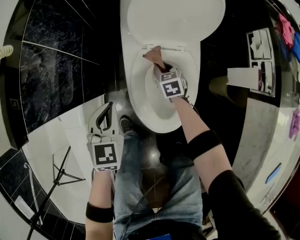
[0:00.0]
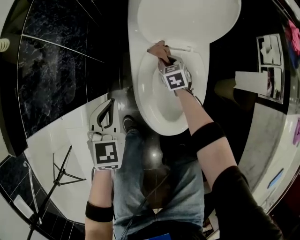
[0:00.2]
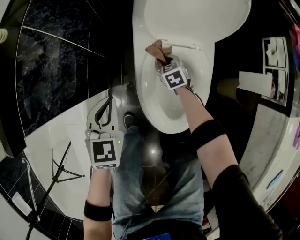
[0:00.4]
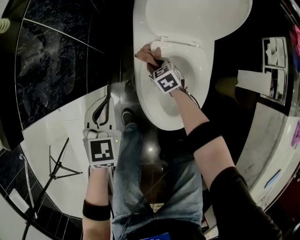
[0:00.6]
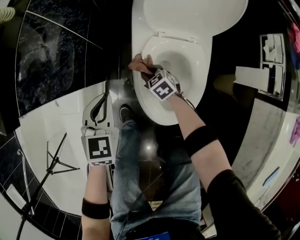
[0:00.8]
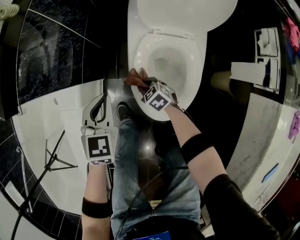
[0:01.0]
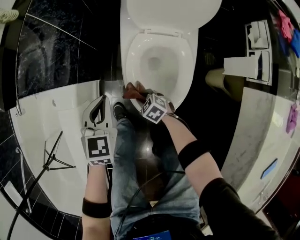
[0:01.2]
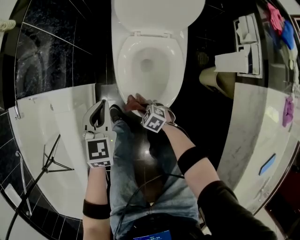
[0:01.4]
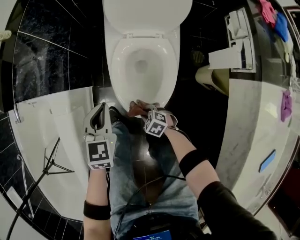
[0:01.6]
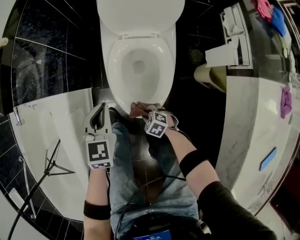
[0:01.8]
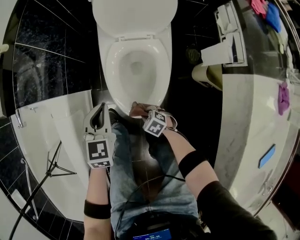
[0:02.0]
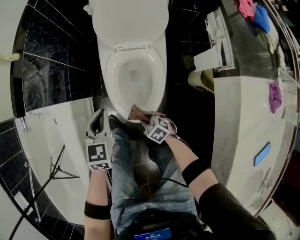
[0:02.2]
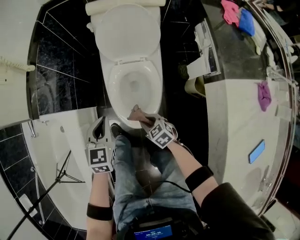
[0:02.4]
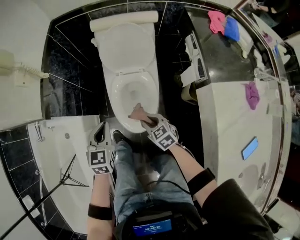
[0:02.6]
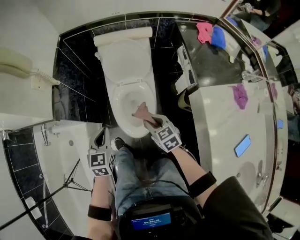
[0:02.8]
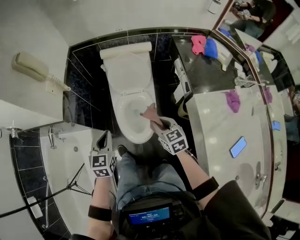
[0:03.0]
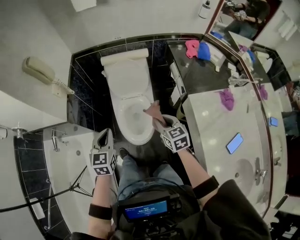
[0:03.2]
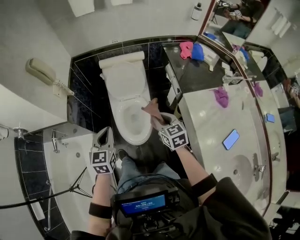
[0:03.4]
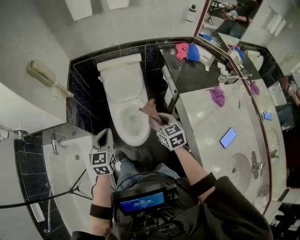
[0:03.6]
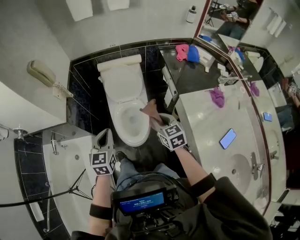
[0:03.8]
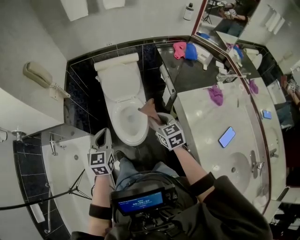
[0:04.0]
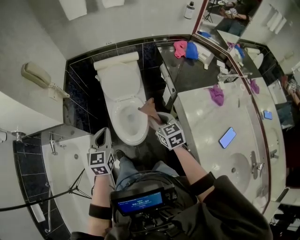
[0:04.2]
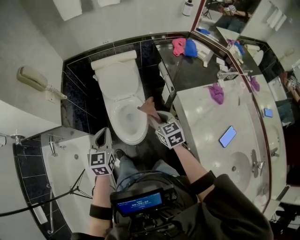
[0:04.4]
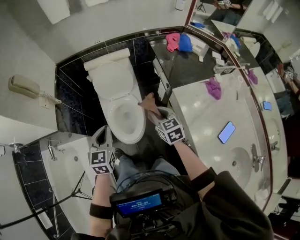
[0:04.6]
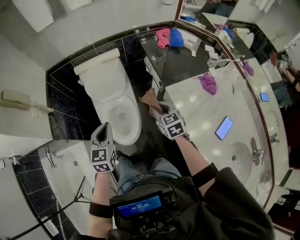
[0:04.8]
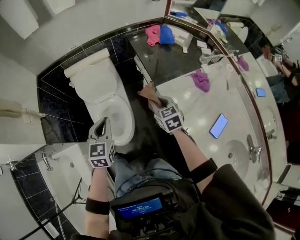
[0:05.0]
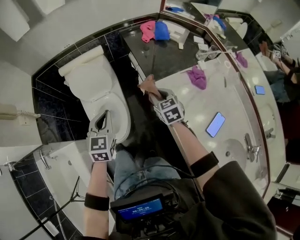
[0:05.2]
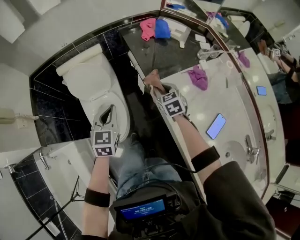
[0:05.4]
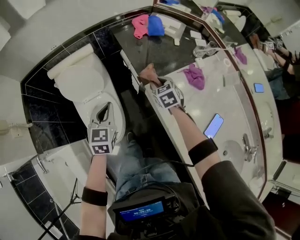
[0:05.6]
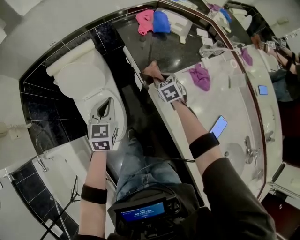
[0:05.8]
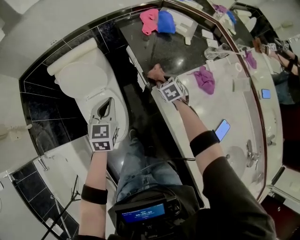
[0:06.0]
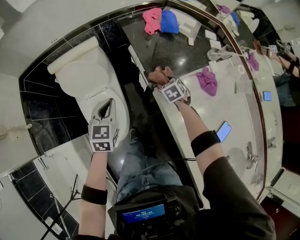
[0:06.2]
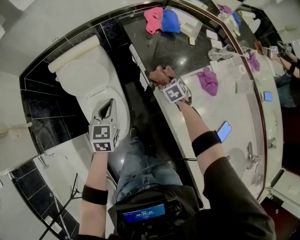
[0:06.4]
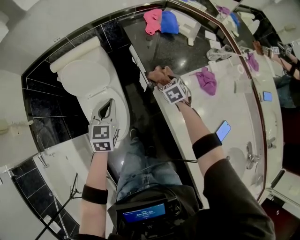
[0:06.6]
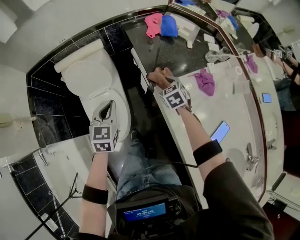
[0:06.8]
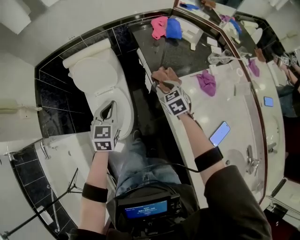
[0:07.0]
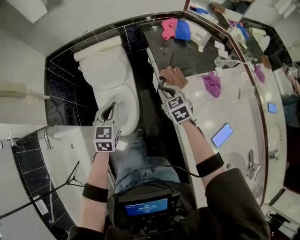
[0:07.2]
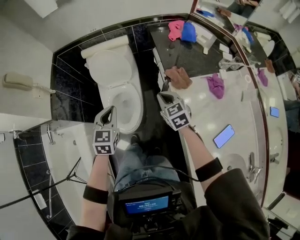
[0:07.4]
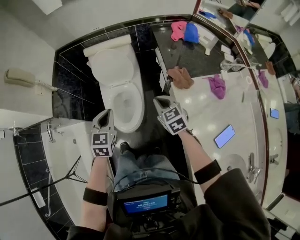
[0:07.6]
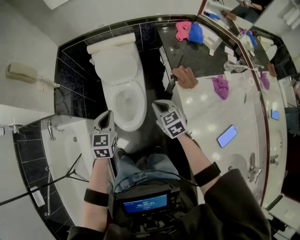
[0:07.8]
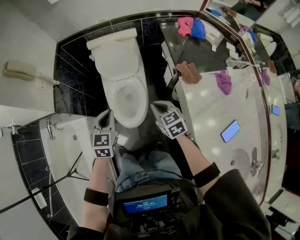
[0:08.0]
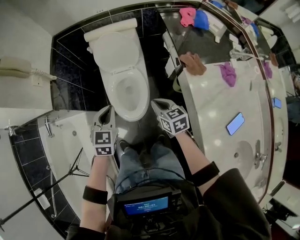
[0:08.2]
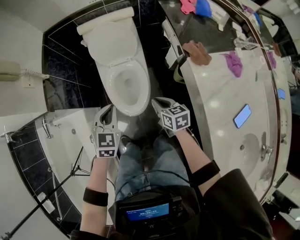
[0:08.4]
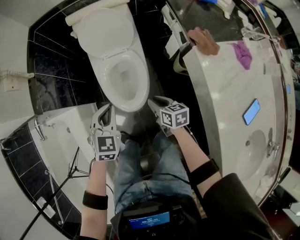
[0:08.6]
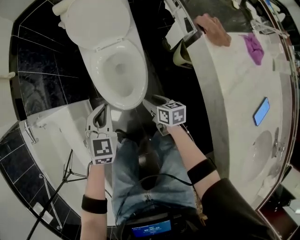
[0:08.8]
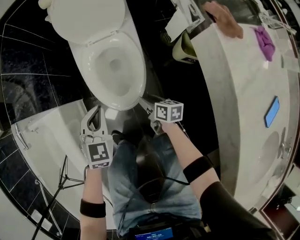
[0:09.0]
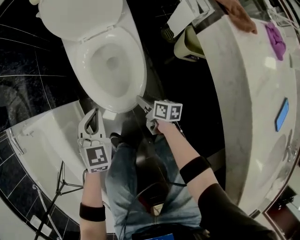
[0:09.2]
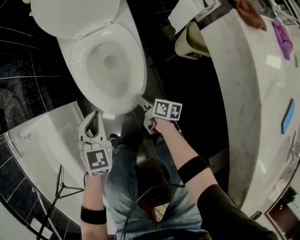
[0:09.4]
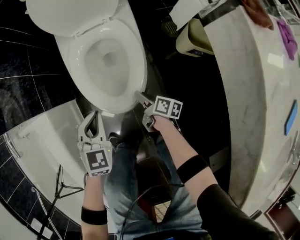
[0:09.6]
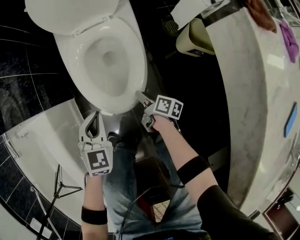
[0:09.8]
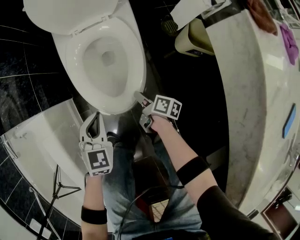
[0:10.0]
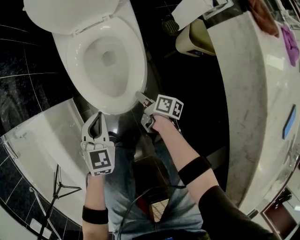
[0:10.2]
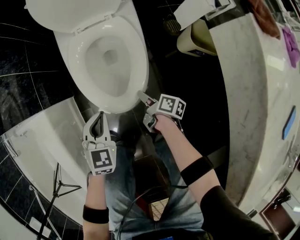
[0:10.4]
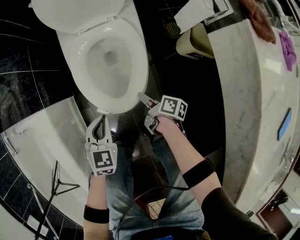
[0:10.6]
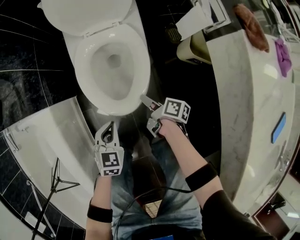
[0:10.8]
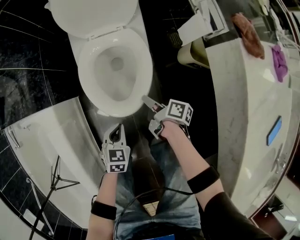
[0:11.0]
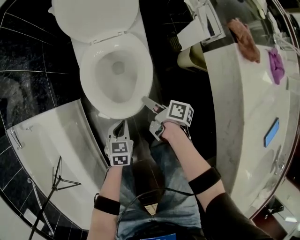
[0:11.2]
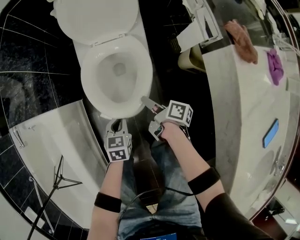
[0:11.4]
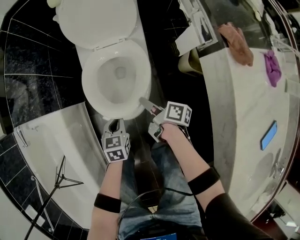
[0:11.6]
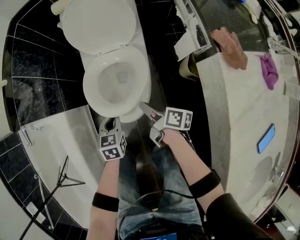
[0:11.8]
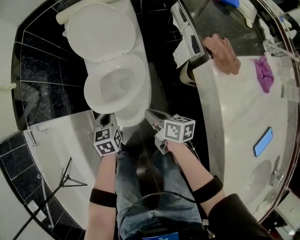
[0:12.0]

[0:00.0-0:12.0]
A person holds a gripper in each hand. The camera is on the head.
0:00.0 to 0:01.6: The right gripper changes place by some 35 cm, and changes its angle by some 50 degrees; the left gripper ends up approximately 10 cm from where it was.
0:01.6 to 0:03.0: The left gripper travels upward by some 30 cm. Meanwhile the right gripper moves upward, approximately 50 cm, and tilts its fingers roughly 30 degrees upward.
0:03.0 to 0:04.4: Both grippers travel together upward and to the right, roughly 10 cm.
0:04.4 to 0:06.0: The left gripper shifts roughly 30 cm forward and to the right, and changes its angle by approximately 20 degrees. The right gripper travels to the right, forward and downward by about 40 cm, and rotates some 30 degrees.
0:06.0 to 0:07.6: The right gripper shifts approximately 30 cm backward, to the left and upward, turns by roughly 30 degrees, and closes up. The left gripper is displaced backward and to the left by some 20 cm.
0:07.6 to 0:09.0: Both grippers move downward, approximately 40 cm. The right gripper rotates around the line of its fingers by approximately 60 degrees, clockwise from behind, and opens.
0:09.0 to 0:10.4: The grippers both shift downward by roughly 15 cm. The right gripper turns by about 30 degrees, and closes up.
0:10.4 to 0:12.0: The right gripper moves upward, about 30 cm, swivels approximately 30 degrees, and closes up, while the left gripper shifts some 10 cm upward and forward, and rotates approximately 30 degrees.

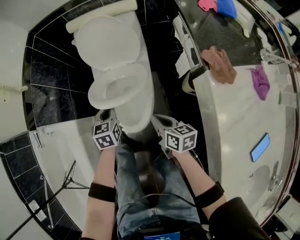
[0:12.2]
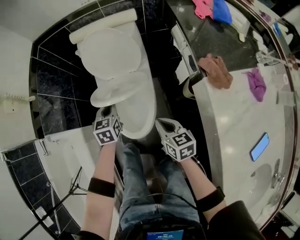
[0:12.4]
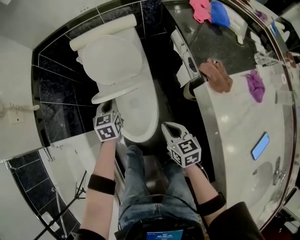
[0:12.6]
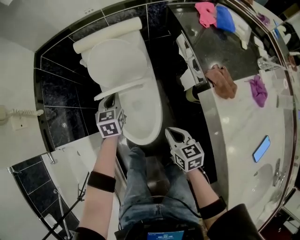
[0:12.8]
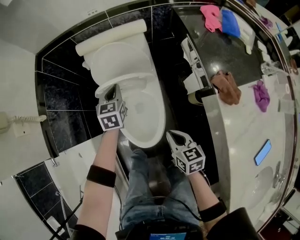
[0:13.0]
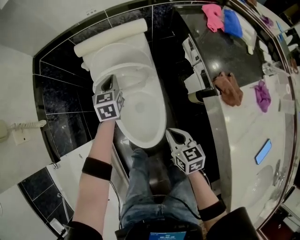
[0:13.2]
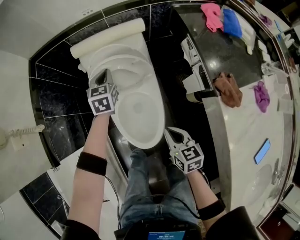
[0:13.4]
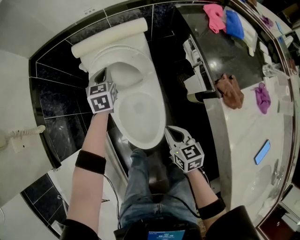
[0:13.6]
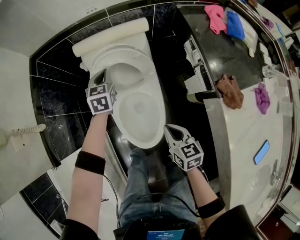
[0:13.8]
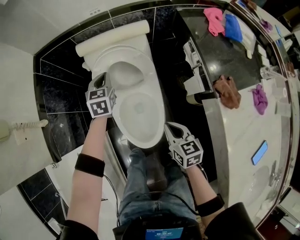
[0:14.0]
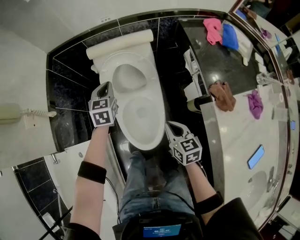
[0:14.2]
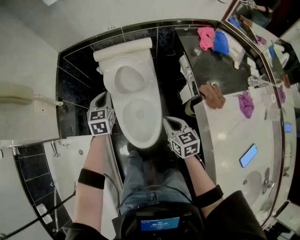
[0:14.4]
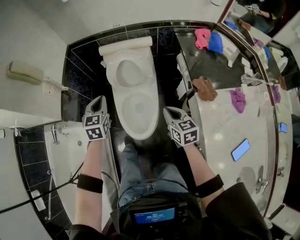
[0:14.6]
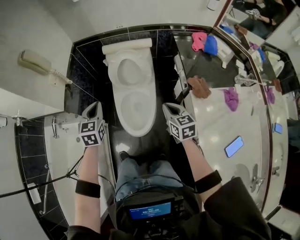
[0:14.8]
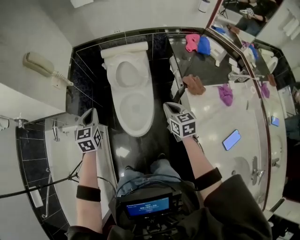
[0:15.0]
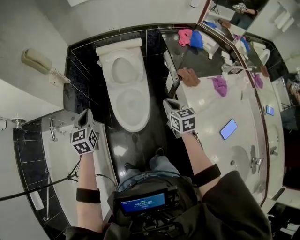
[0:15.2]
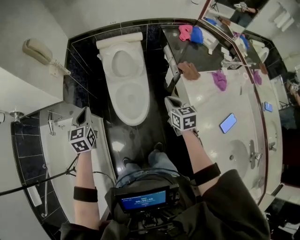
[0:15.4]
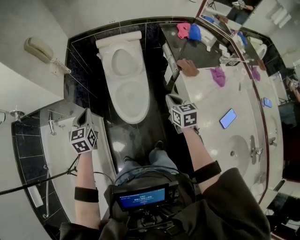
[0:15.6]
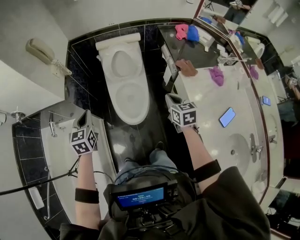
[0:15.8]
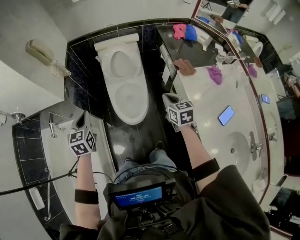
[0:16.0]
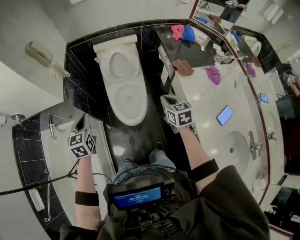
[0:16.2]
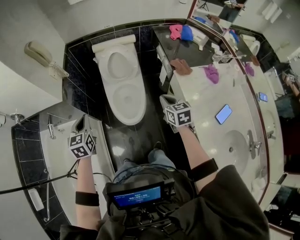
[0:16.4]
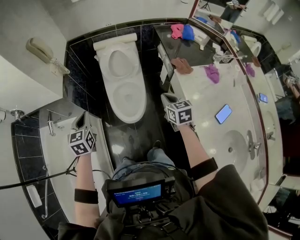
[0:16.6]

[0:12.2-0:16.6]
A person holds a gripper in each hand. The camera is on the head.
0:12.2 to 0:13.6: The right gripper heads forward and upward, covering roughly 10 cm, and changes its angle by roughly 20 degrees; the left gripper travels forward by some 30 cm.
0:13.6 to 0:15.2: The left gripper travels backward, upward and to the left by some 50 cm; the right gripper shifts some 25 cm upward and backward.
0:15.2 to 0:16.6: The two grippers go approximately 10 cm backward.

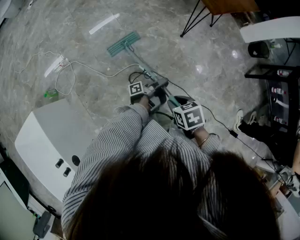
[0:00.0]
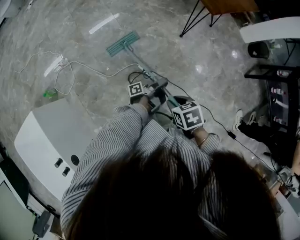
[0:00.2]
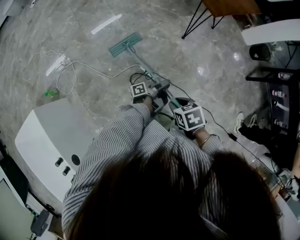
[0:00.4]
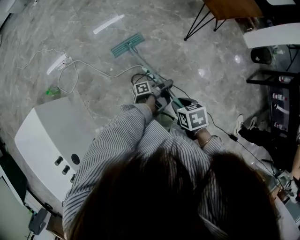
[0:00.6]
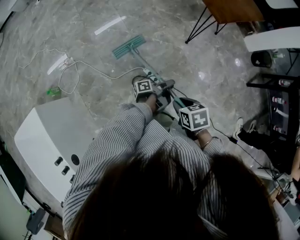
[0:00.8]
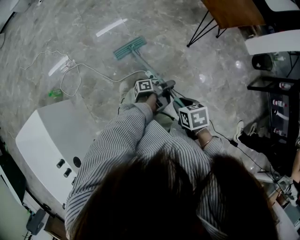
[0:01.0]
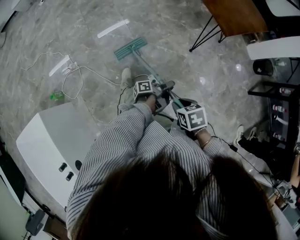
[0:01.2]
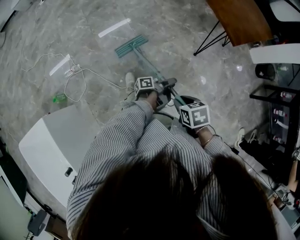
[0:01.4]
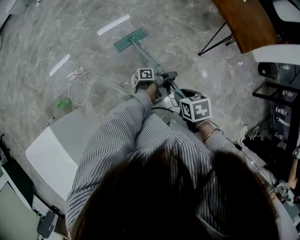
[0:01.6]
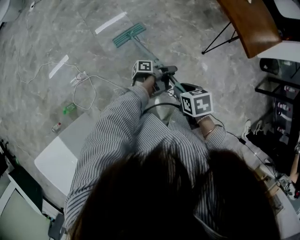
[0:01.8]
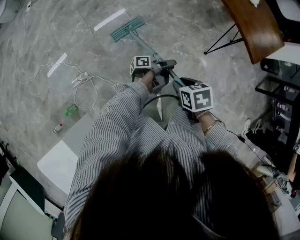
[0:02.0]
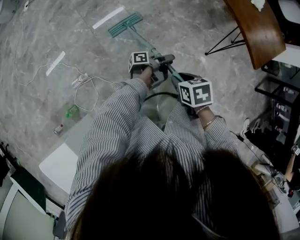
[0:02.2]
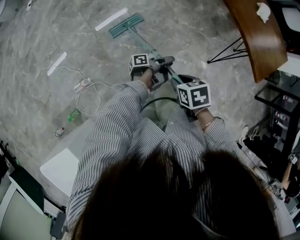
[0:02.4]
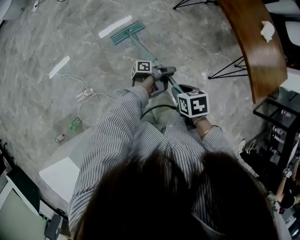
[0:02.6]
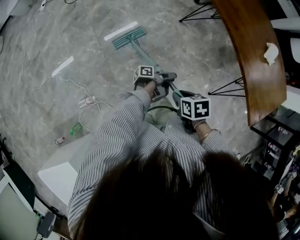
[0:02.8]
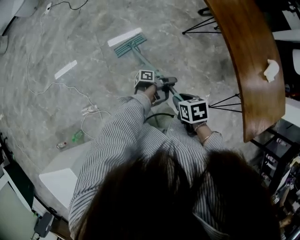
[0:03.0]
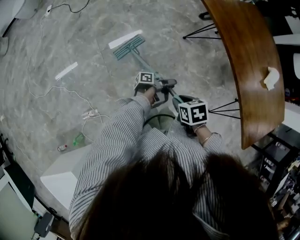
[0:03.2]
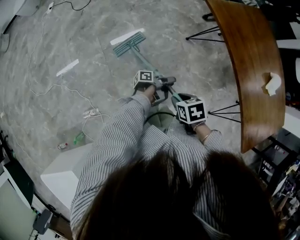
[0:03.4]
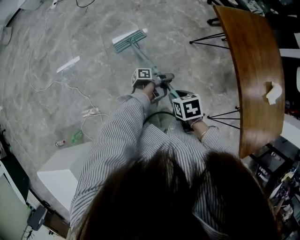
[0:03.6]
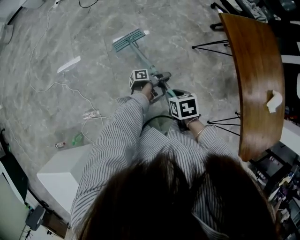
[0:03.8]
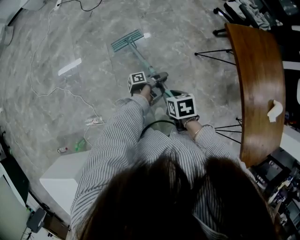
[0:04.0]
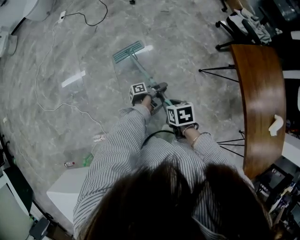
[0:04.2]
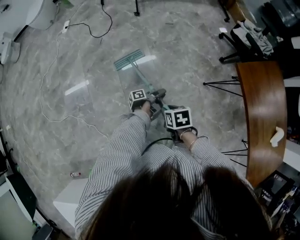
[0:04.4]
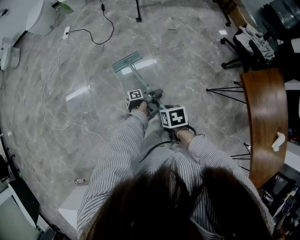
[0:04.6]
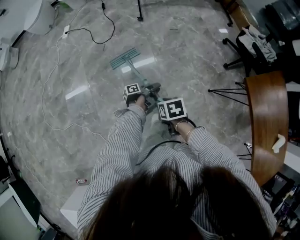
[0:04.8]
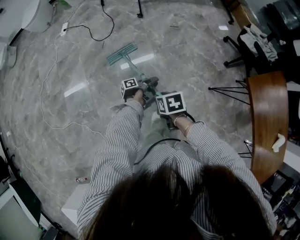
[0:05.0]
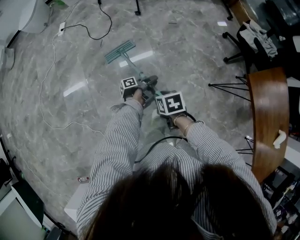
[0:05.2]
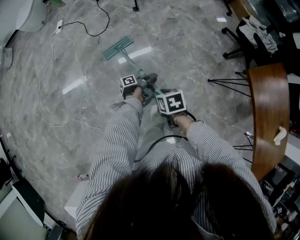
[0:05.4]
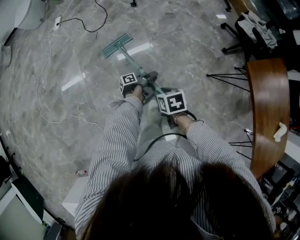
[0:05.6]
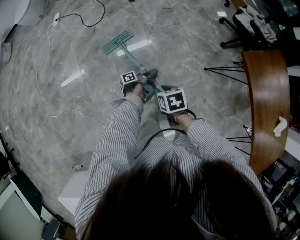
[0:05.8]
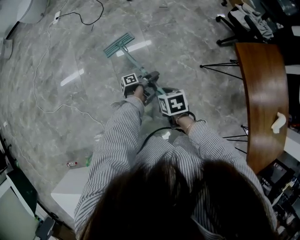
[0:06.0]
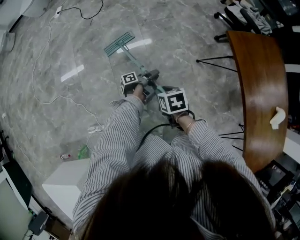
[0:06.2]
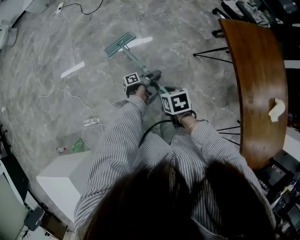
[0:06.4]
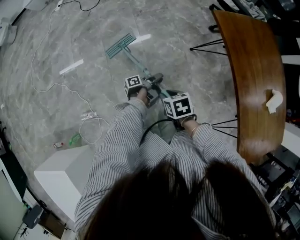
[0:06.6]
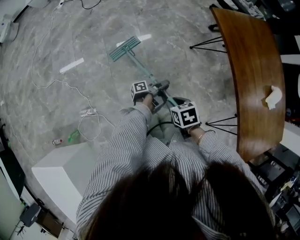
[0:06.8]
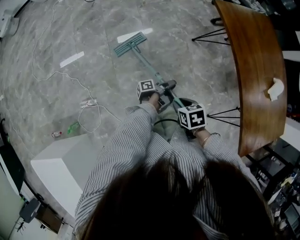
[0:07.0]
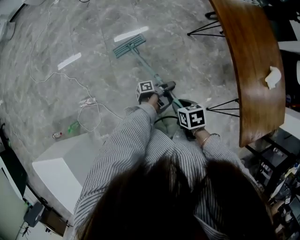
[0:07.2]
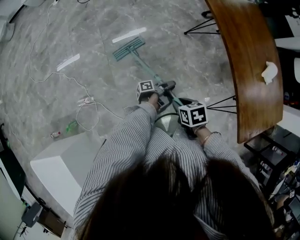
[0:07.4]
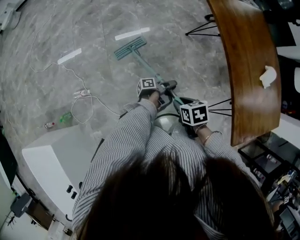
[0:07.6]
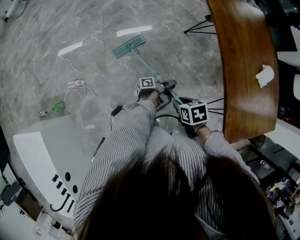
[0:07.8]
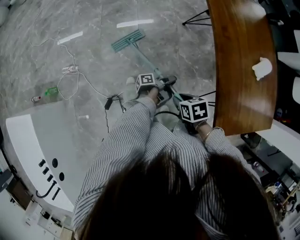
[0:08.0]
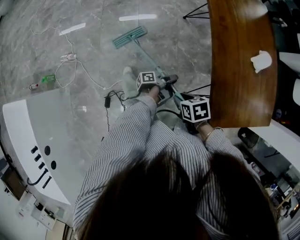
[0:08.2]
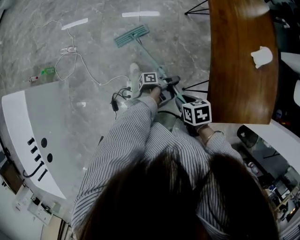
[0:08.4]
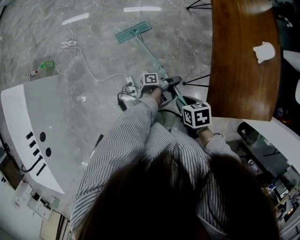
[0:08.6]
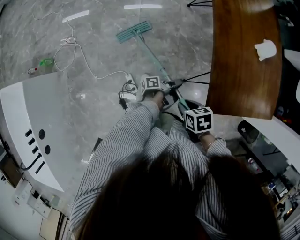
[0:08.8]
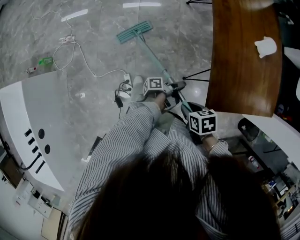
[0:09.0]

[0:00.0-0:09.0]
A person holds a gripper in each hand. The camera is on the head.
0:00.0 to 0:01.6: The right gripper changes place by roughly 25 cm.
0:01.6 to 0:03.0: The right gripper shifts by about 50 cm.
0:03.0 to 0:04.4: The right gripper ends up about 40 cm from where it was.
0:06.0 to 0:07.6: The right gripper changes place by roughly 50 cm.
0:07.6 to 0:09.0: The right gripper changes place by some 40 cm.
